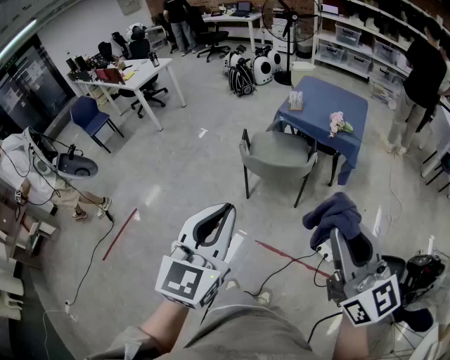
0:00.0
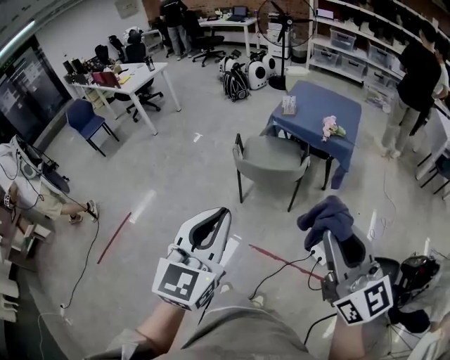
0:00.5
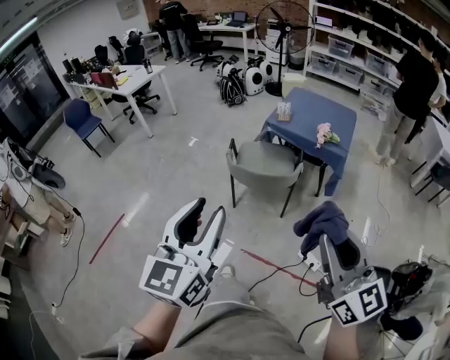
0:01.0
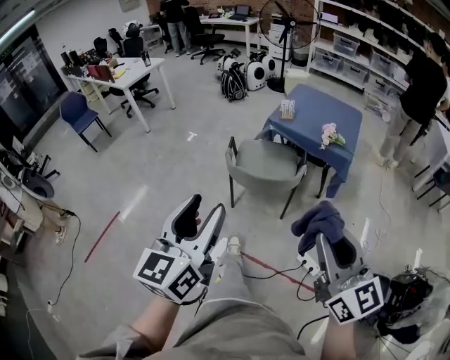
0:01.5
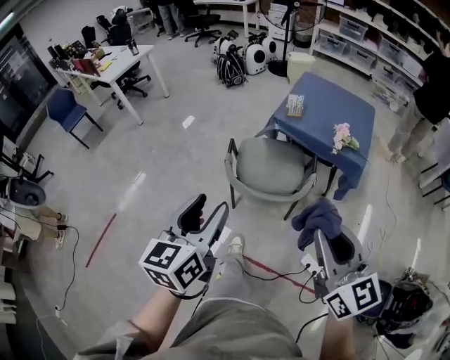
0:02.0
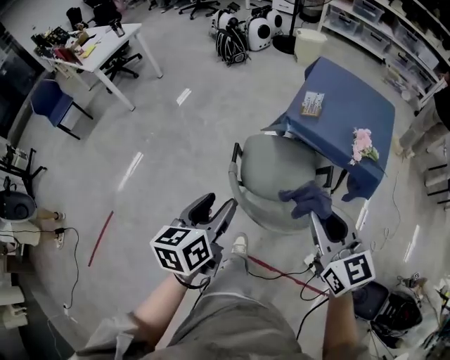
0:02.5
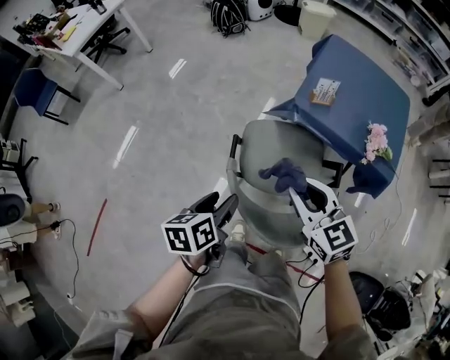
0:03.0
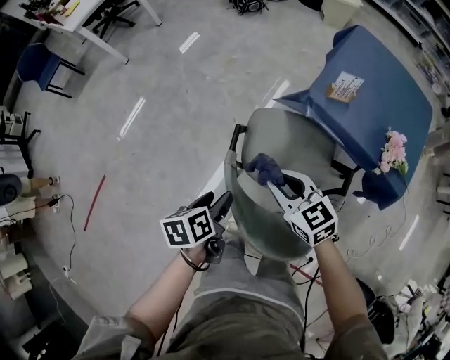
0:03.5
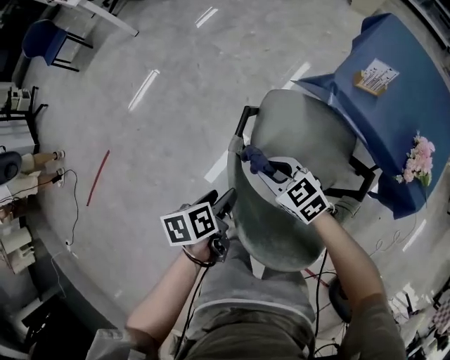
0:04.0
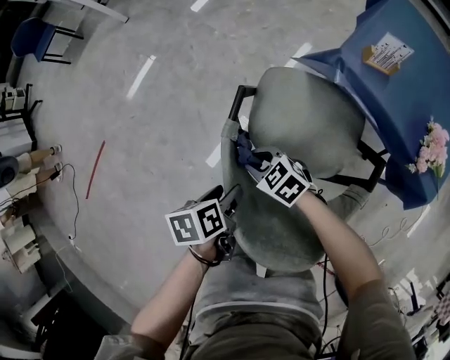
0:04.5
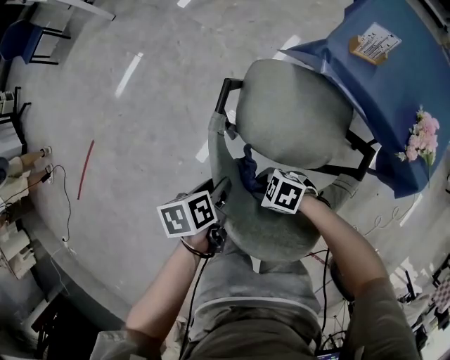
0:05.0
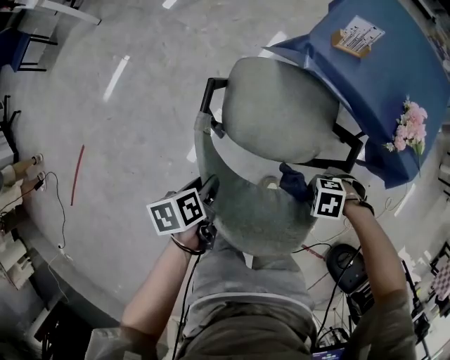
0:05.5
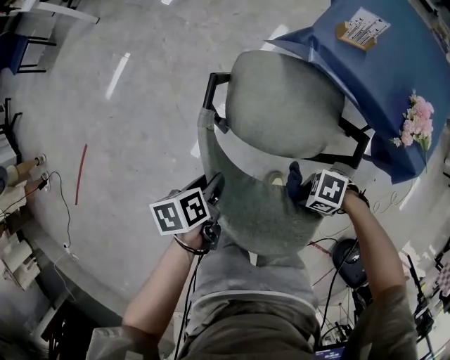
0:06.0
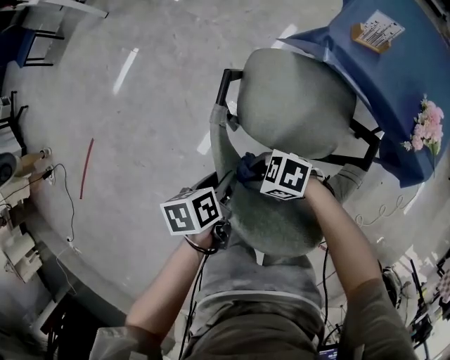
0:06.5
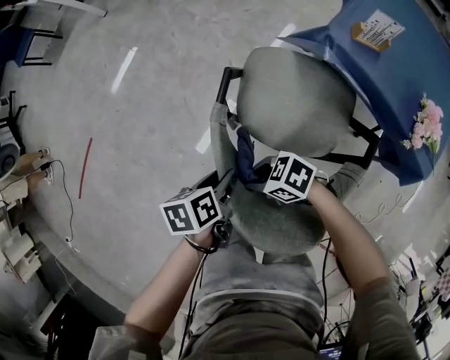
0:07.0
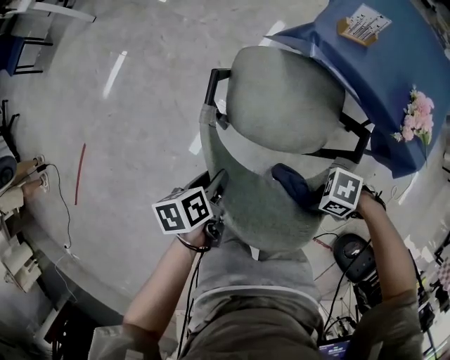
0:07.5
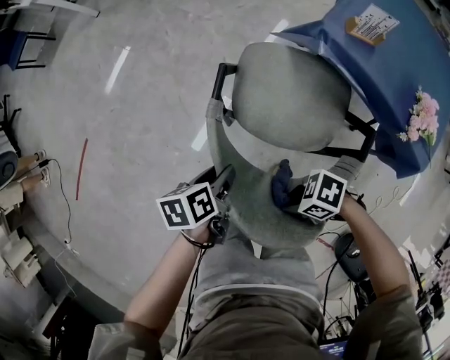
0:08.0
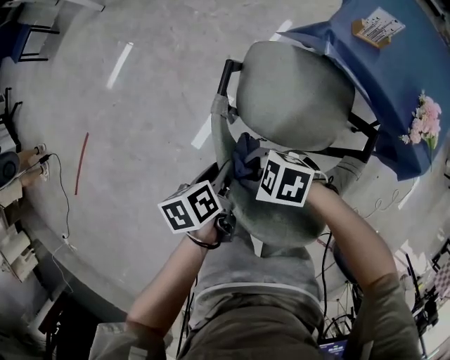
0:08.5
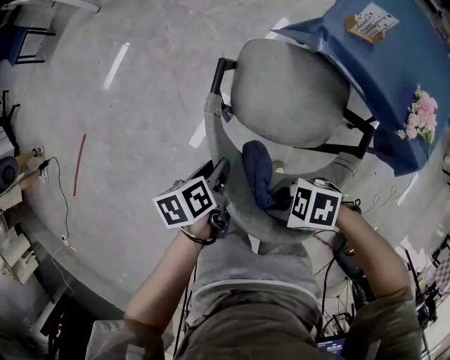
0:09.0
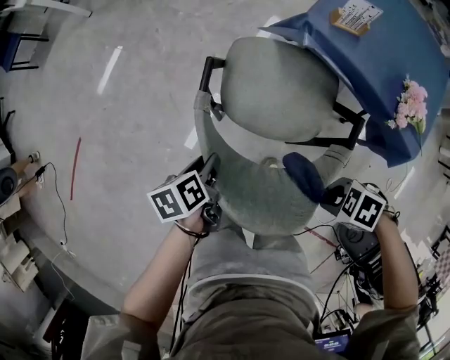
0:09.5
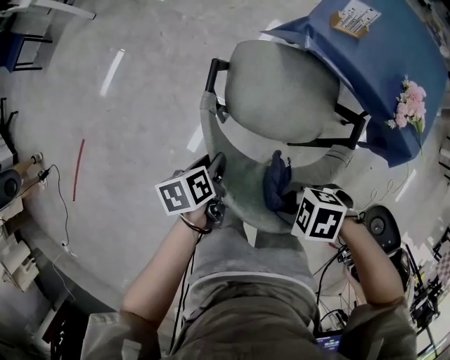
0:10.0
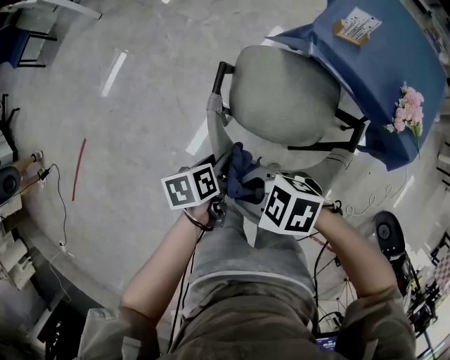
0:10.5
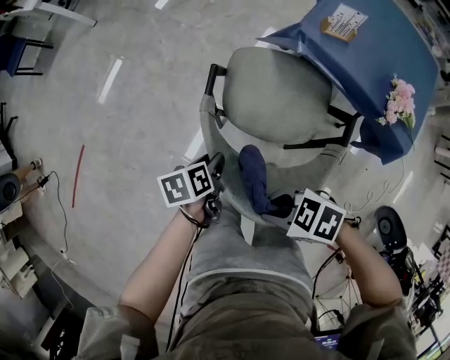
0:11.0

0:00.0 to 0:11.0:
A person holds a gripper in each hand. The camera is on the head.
0:00.0 to 0:02.0: Both grippers travel together forward and downward, roughly 25 cm. The left gripper changes its angle by roughly 30 degrees, and opens.
0:02.0 to 0:03.5: The right gripper moves forward and downward, approximately 50 cm, and swivels some 40 degrees. Meanwhile the left gripper travels downward and forward by some 40 cm, and angles its fingers downward, by some 40 degrees.
0:03.5 to 0:05.5: The left gripper moves downward, some 10 cm. The right gripper shifts by approximately 35 cm, and swivels some 80 degrees.
0:05.5 to 0:07.5: The right gripper shifts some 5 cm upward, and rotates about 30 degrees.
0:07.5 to 0:09.0: The right gripper changes its angle by about 30 degrees.
0:09.0 to 0:11.0: The right gripper moves upward, about 5 cm.

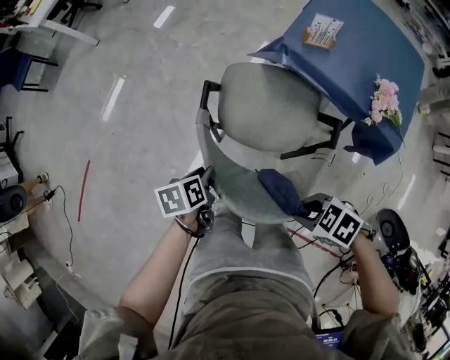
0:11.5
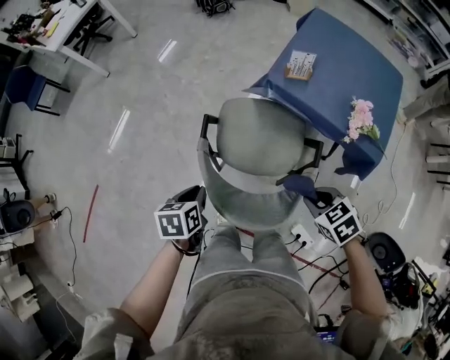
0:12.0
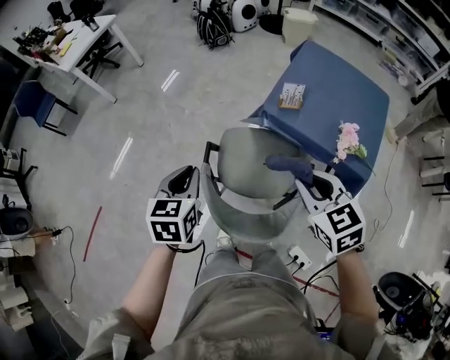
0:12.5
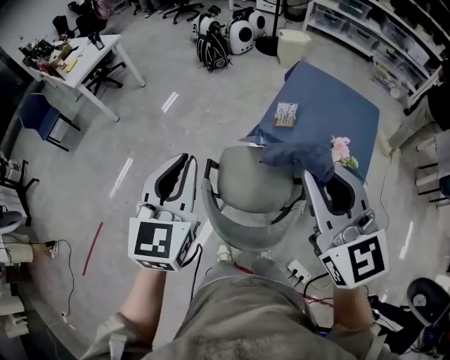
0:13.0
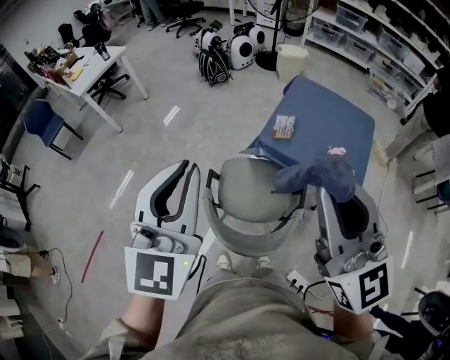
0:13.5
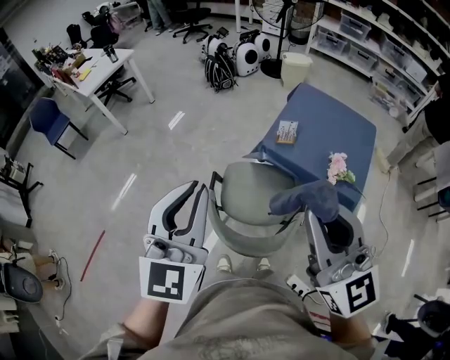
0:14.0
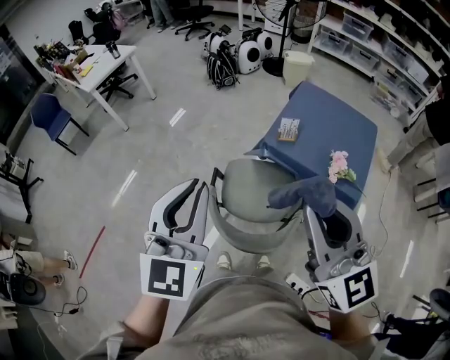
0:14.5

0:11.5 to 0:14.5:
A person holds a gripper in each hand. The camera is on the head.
0:11.5 to 0:13.0: The two grippers go some 40 cm upward. The right gripper points its fingers roughly 50 degrees further upward, while the left gripper angles its fingers upward, by about 50 degrees.
0:13.0 to 0:14.5: The left gripper moves backward and upward, approximately 10 cm; the right gripper goes approximately 10 cm backward.

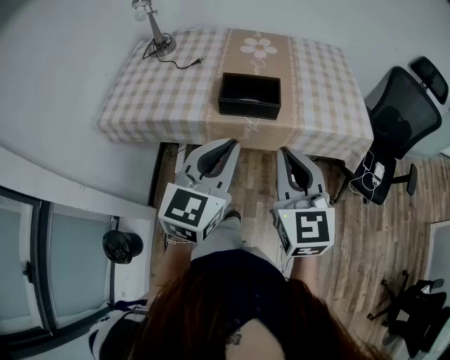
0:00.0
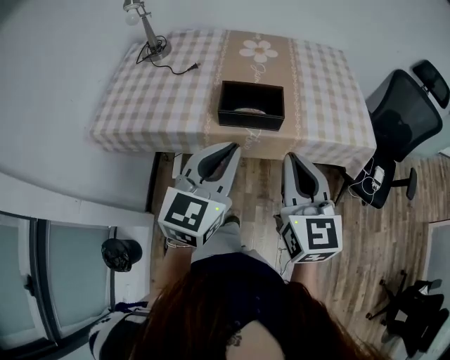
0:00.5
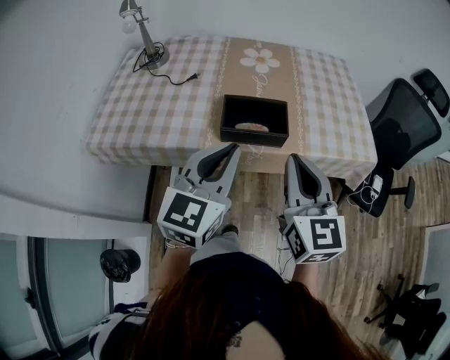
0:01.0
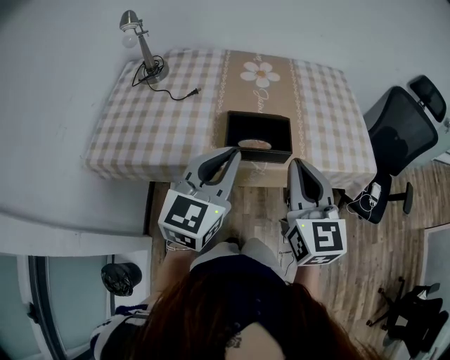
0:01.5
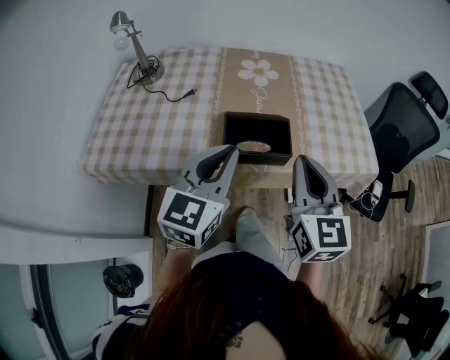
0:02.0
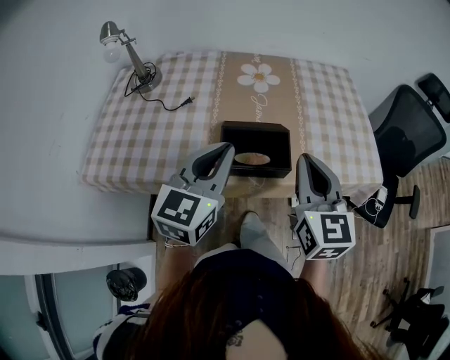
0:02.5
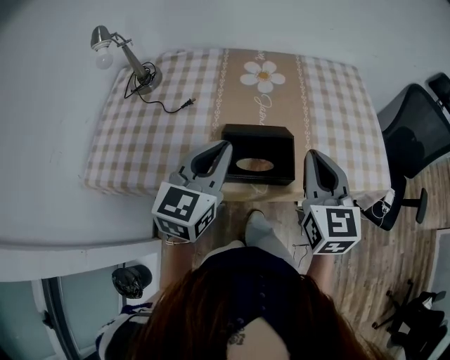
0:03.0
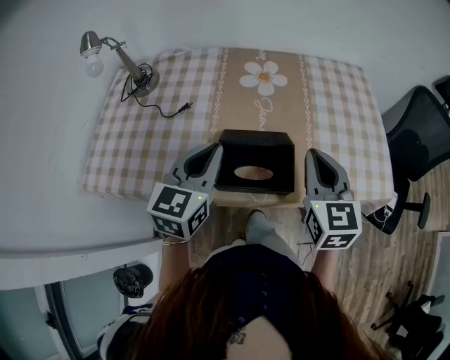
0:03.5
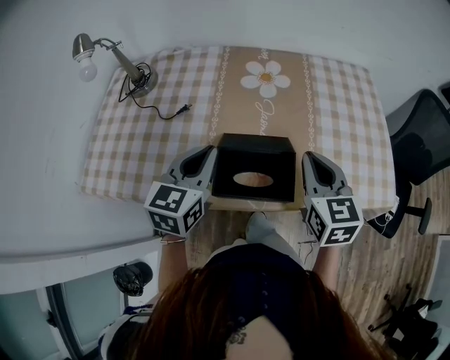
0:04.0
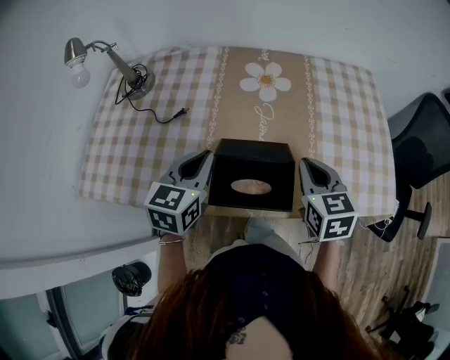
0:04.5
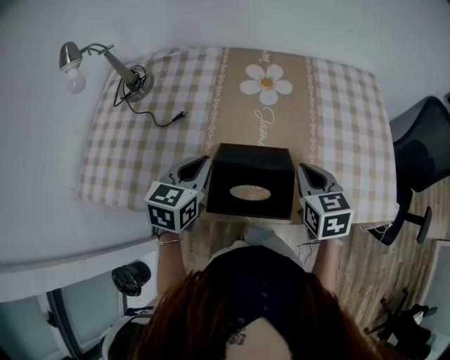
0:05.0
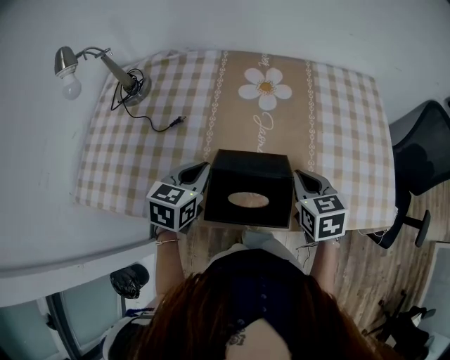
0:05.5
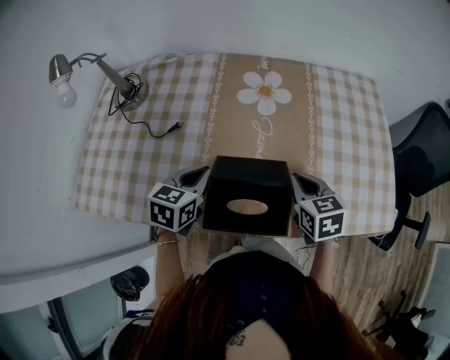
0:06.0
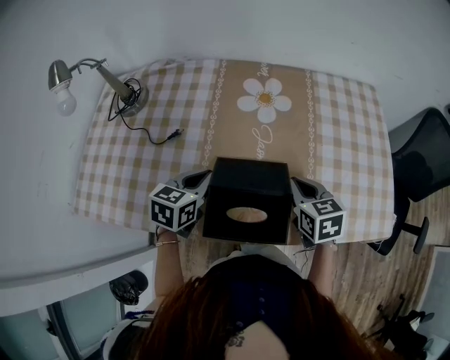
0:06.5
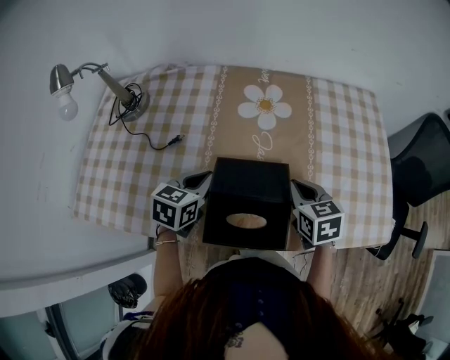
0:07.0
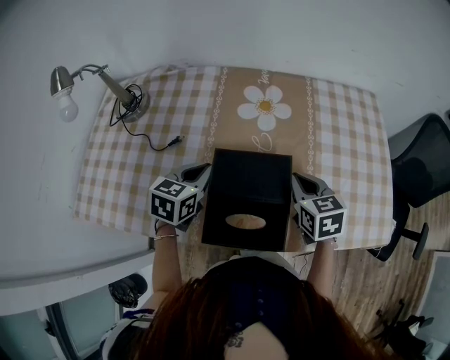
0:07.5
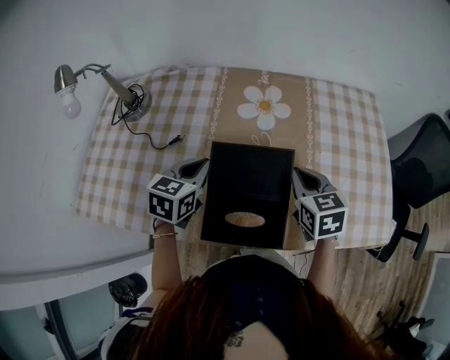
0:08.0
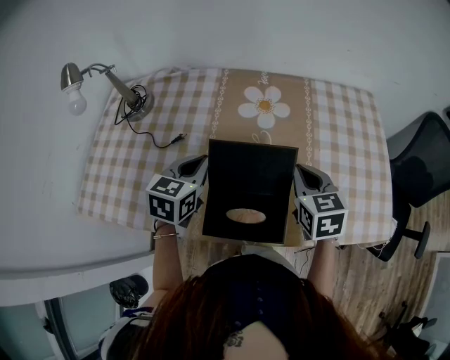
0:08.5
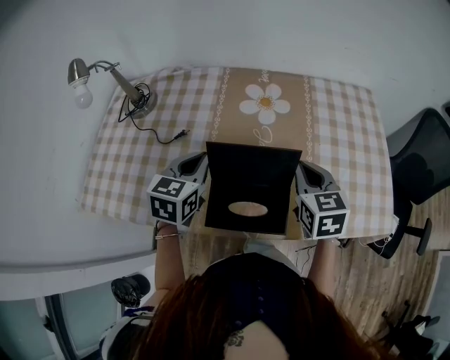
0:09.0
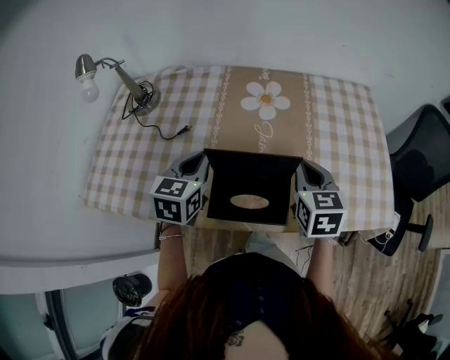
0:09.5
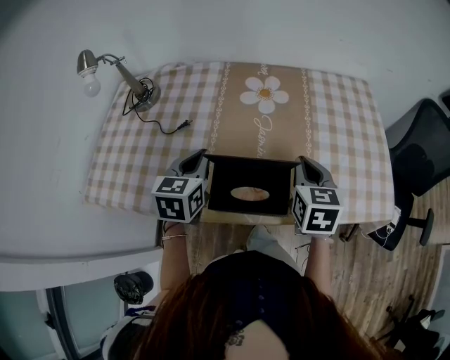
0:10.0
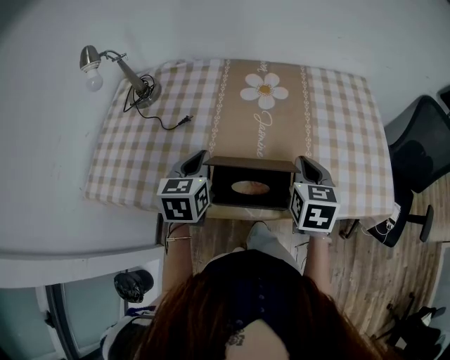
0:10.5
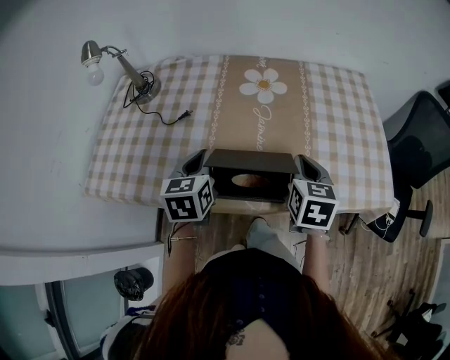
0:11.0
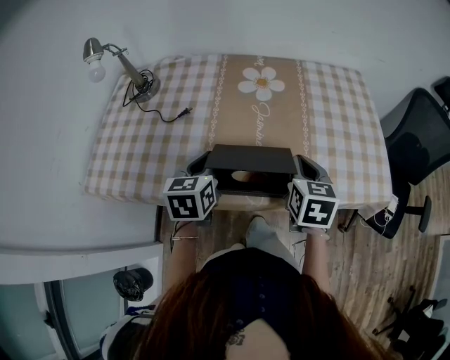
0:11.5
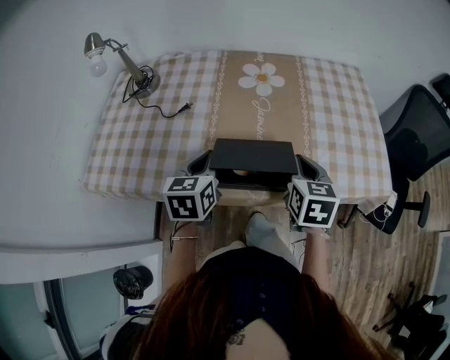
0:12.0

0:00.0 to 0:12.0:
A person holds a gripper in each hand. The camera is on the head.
0:00.0 to 0:02.0: The left gripper goes roughly 15 cm forward and to the left. The right gripper moves forward, approximately 15 cm.
0:02.0 to 0:04.0: Both grippers move forward and downward, some 20 cm.
0:04.0 to 0:06.0: The right gripper travels downward and forward by some 15 cm, and swivels some 20 degrees. The left gripper heads downward, covering roughly 10 cm.
0:06.0 to 0:08.0: The left gripper shifts about 5 cm forward, while the right gripper changes place by some 5 cm.
0:08.0 to 0:10.0: The two grippers go some 5 cm backward.
0:10.0 to 0:12.0: Both grippers move backward, some 5 cm.

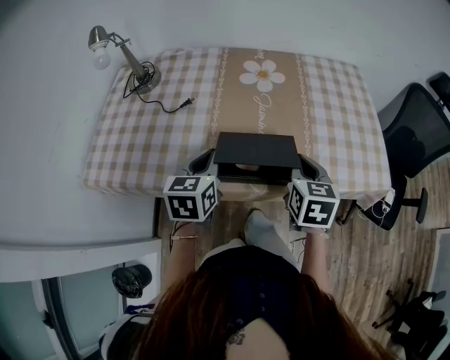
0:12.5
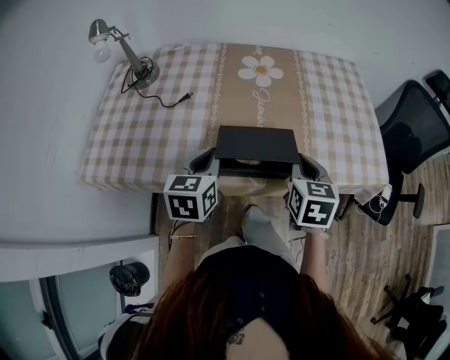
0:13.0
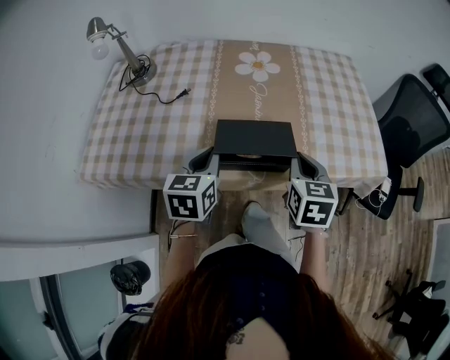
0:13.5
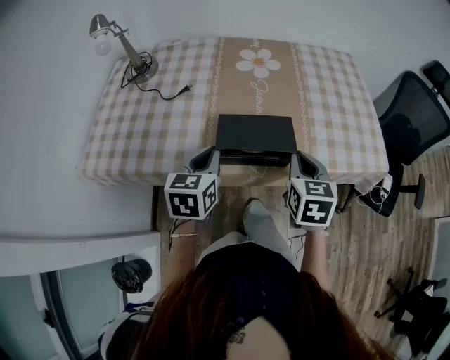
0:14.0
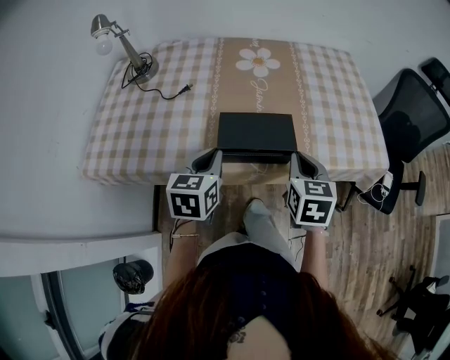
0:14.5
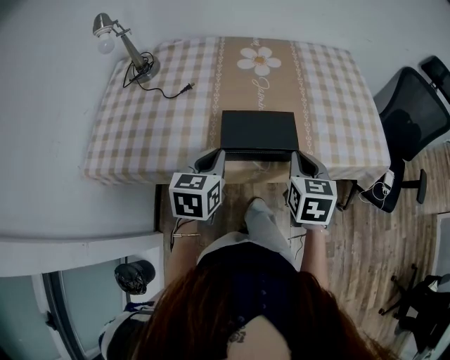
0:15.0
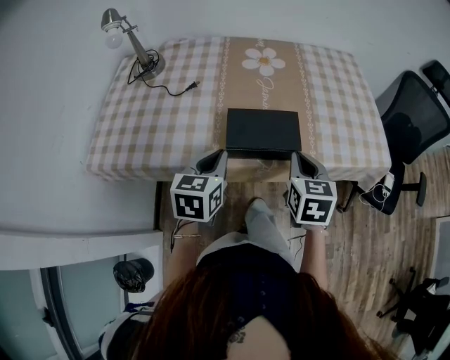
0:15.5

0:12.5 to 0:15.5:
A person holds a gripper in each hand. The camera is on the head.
0:12.5 to 0:14.0: The grippers move only a little.
0:14.0 to 0:15.5: There are only small adjustments of the grippers.
